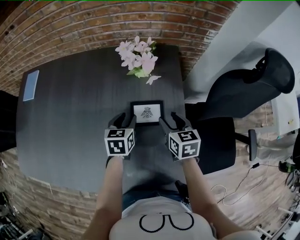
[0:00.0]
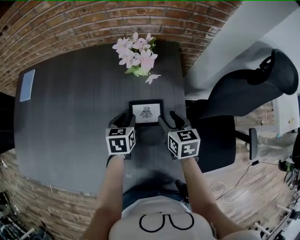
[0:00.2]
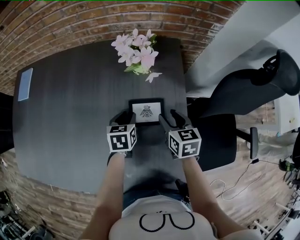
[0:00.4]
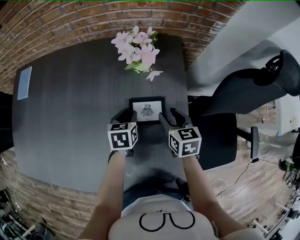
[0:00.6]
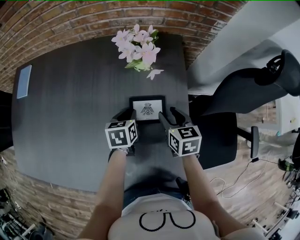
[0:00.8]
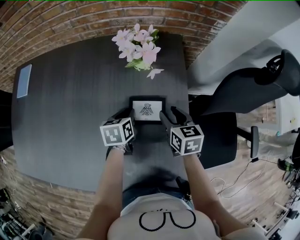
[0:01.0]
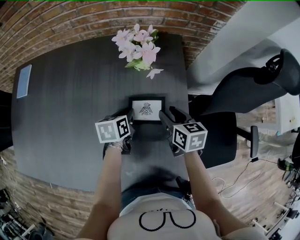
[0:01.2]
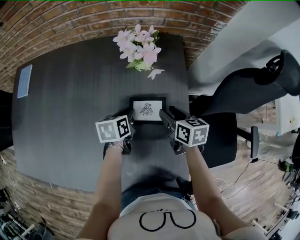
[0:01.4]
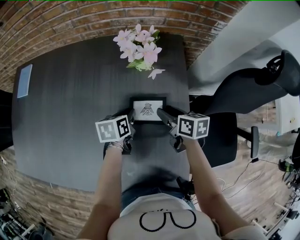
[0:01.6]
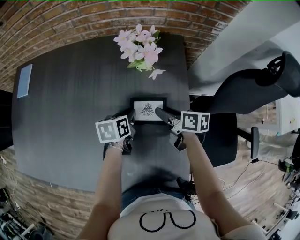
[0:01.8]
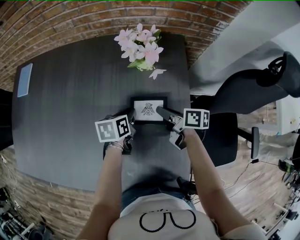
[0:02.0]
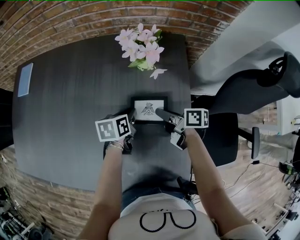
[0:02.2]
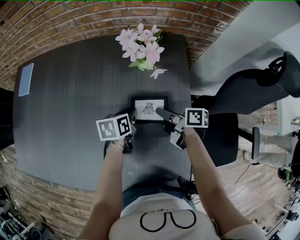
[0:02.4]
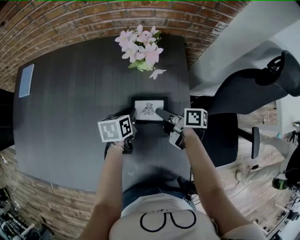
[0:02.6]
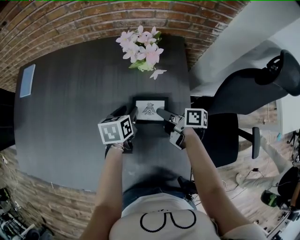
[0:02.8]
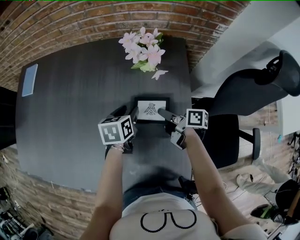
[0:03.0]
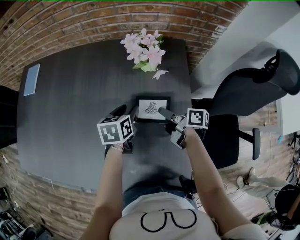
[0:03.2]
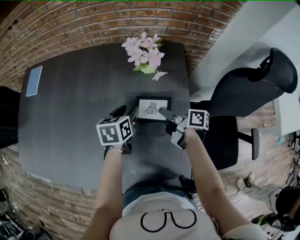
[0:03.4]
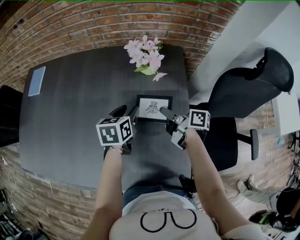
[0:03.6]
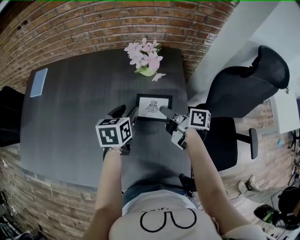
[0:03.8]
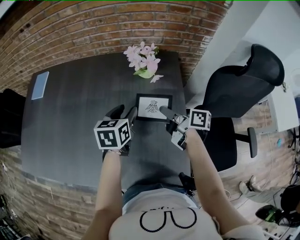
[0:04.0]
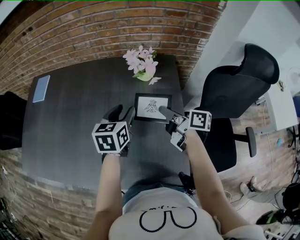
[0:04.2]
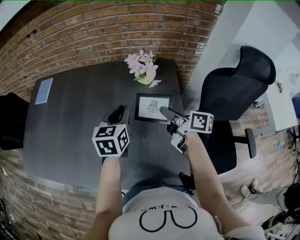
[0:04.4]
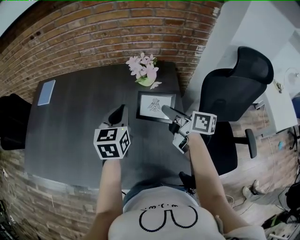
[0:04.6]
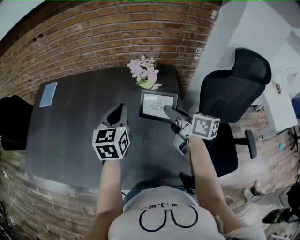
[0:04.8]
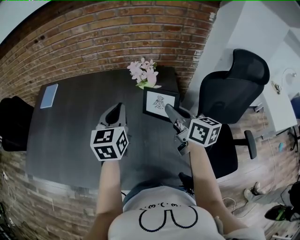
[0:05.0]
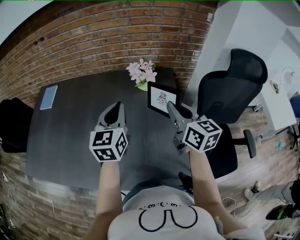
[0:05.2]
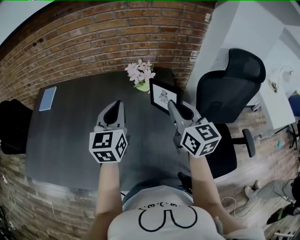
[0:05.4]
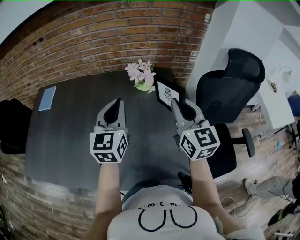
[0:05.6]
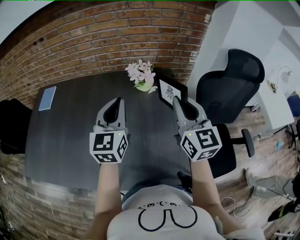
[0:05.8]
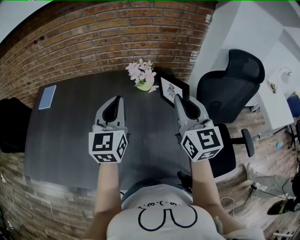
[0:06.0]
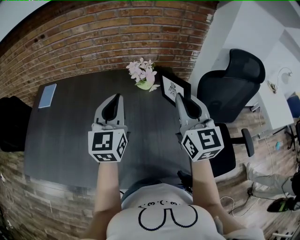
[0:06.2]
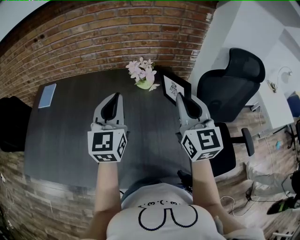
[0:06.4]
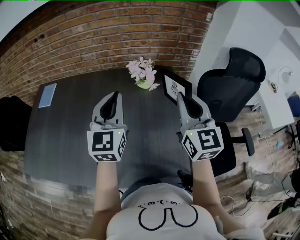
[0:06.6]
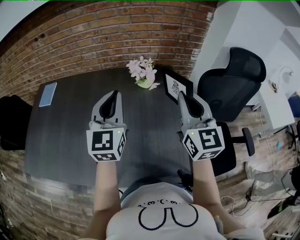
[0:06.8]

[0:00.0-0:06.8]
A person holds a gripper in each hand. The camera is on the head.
0:00.0 to 0:01.4: The right gripper ends up approximately 5 cm from where it was, while the left gripper heads downward, covering roughly 5 cm, rotates about 20 degrees, and closes up.
0:01.4 to 0:02.8: The left gripper opens its fingers, while the right gripper rotates roughly 40 degrees, and closes its fingers.
0:02.8 to 0:04.0: The grippers both shift upward by roughly 15 cm.
0:04.0 to 0:05.4: The two grippers go some 20 cm upward. The left gripper changes its angle by roughly 30 degrees, and closes its fingers; the right gripper rolls counterclockwise, seen from behind, by about 60 degrees.
0:05.4 to 0:06.8: The right gripper heads upward, covering about 5 cm, while the left gripper moves some 5 cm.

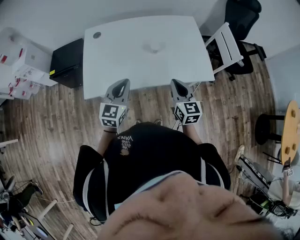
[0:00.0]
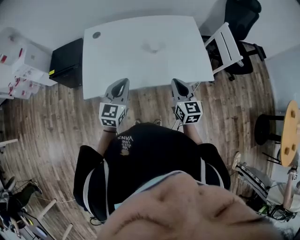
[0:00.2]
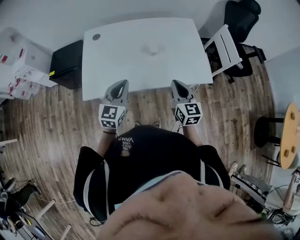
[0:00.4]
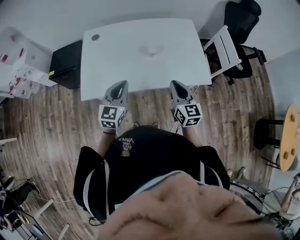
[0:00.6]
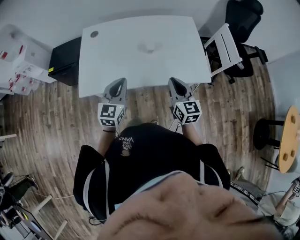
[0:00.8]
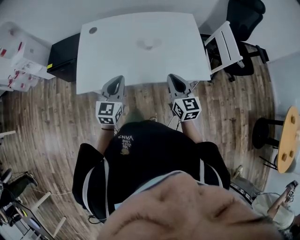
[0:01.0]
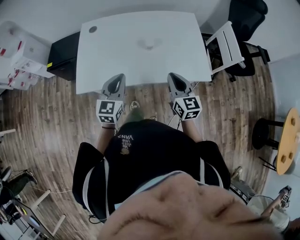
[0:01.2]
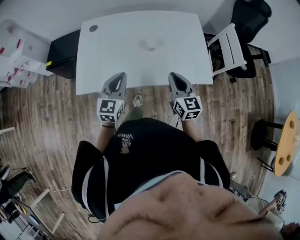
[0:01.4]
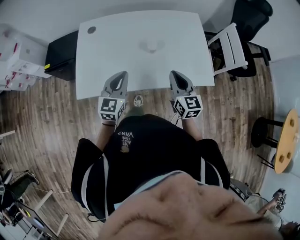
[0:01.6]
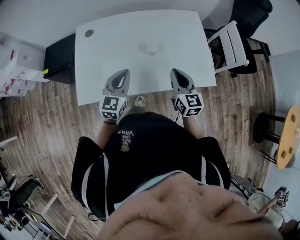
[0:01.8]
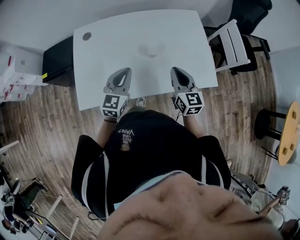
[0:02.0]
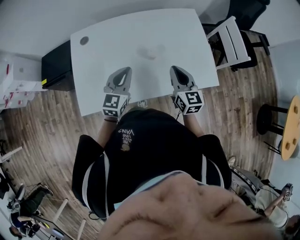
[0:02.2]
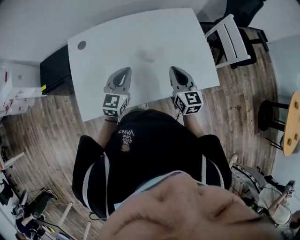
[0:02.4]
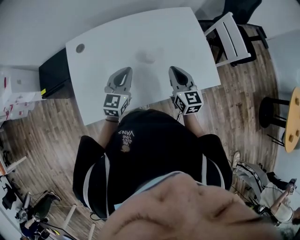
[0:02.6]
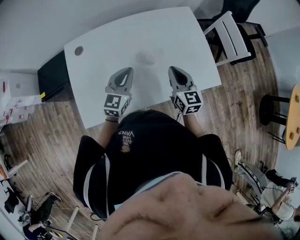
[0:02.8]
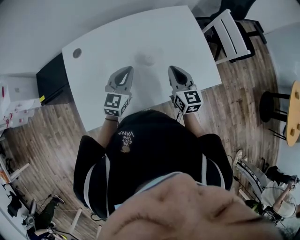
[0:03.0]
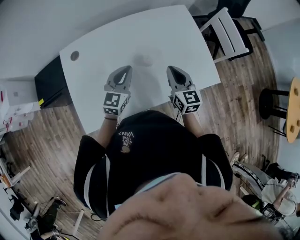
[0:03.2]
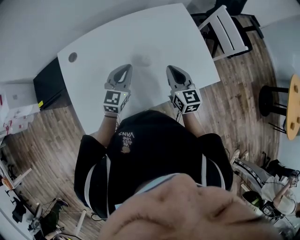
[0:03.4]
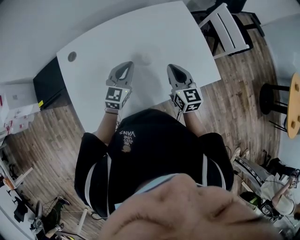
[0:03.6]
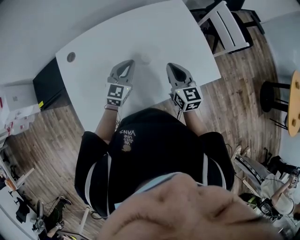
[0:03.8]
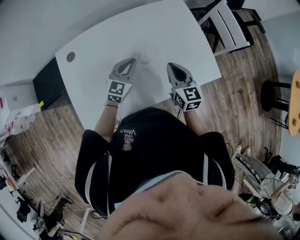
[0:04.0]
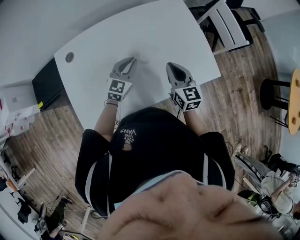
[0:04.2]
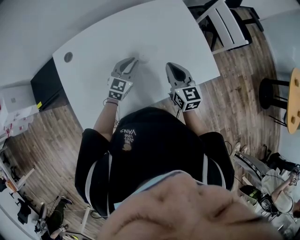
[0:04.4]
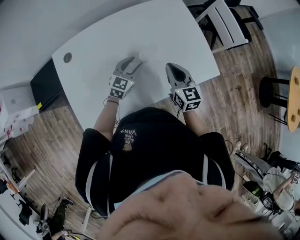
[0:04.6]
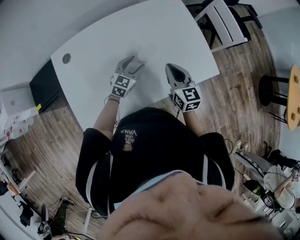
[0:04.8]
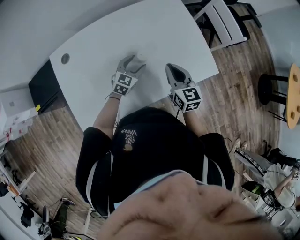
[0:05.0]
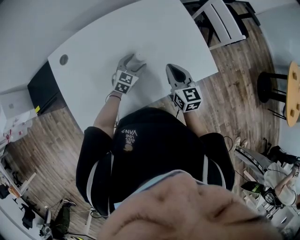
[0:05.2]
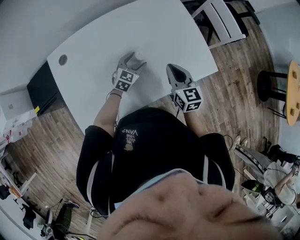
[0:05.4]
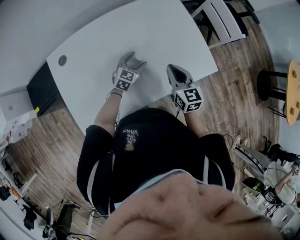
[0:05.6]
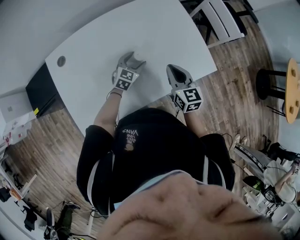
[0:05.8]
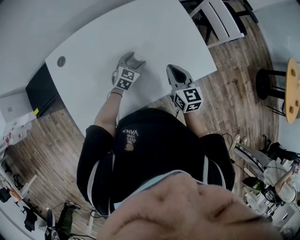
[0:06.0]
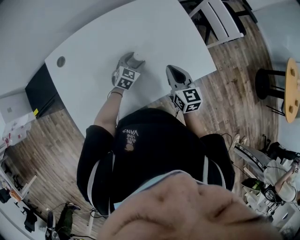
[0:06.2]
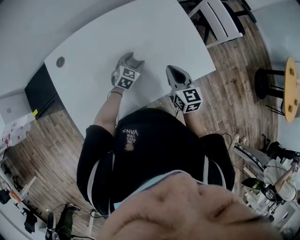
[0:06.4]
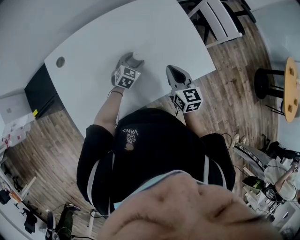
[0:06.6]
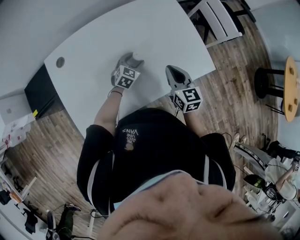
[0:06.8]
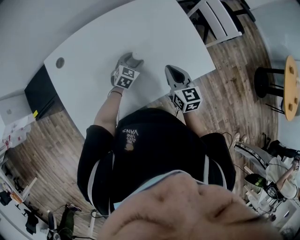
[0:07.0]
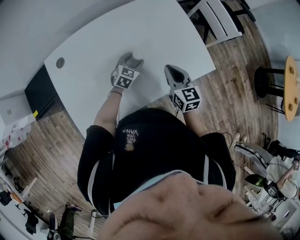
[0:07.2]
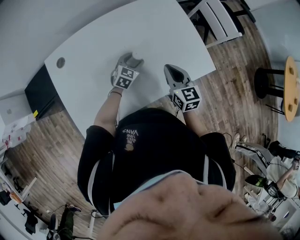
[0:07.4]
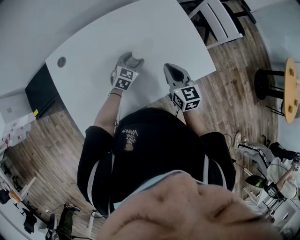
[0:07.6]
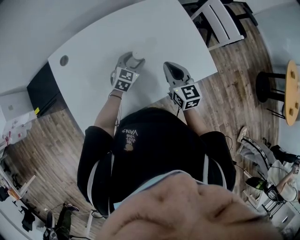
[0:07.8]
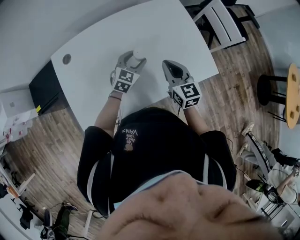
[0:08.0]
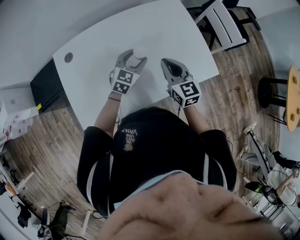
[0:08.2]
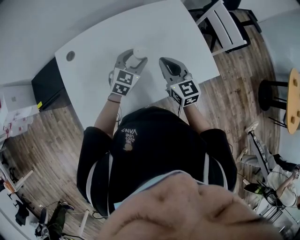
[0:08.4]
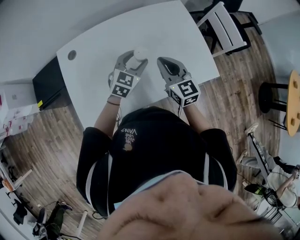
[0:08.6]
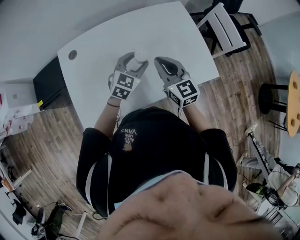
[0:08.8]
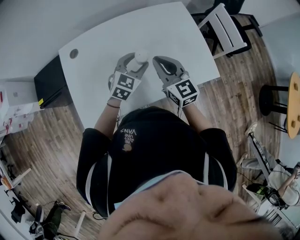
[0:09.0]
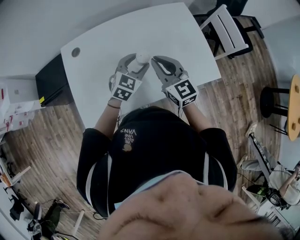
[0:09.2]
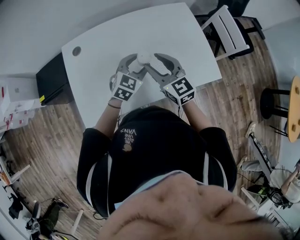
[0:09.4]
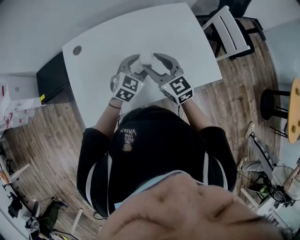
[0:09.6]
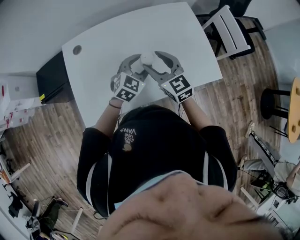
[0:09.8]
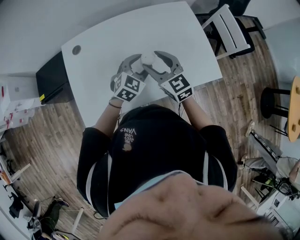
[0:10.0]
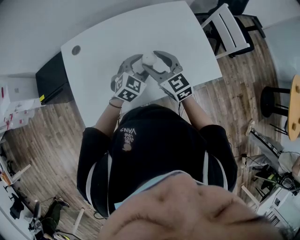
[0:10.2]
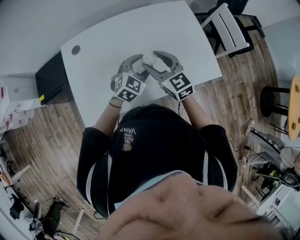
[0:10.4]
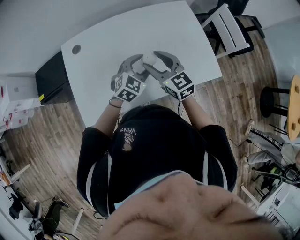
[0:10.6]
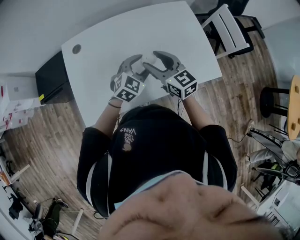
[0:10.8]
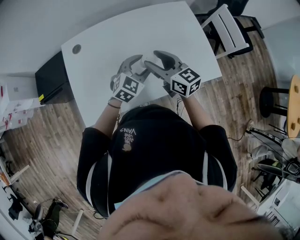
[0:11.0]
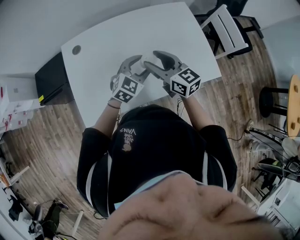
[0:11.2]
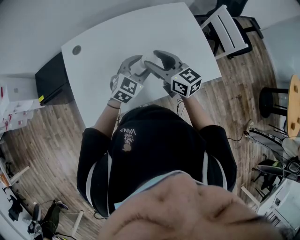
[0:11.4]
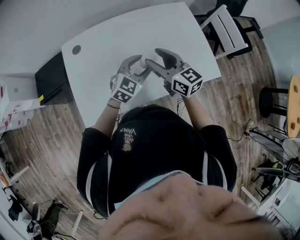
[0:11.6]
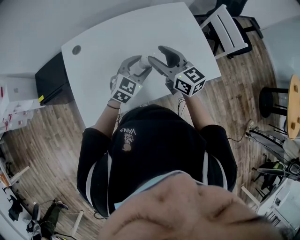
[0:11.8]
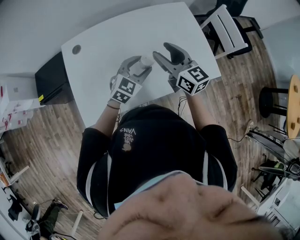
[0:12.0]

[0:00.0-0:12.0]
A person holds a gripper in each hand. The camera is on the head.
0:00.0 to 0:01.6: The grippers both shift forward by roughly 10 cm.
0:01.6 to 0:03.0: The grippers both shift forward by about 15 cm.
0:03.0 to 0:04.4: The left gripper heads downward and forward, covering approximately 10 cm.
0:04.4 to 0:06.0: The left gripper heads downward, covering roughly 10 cm, and opens up.
0:06.0 to 0:07.6: The grippers stay close to where they were, moving slightly.
0:07.6 to 0:09.0: The right gripper goes about 10 cm upward and to the left, and rotates about 20 degrees, while the left gripper heads upward and backward, covering approximately 15 cm.
0:09.0 to 0:10.4: The right gripper opens.
0:10.4 to 0:12.0: The right gripper is displaced upward by about 5 cm, and changes its angle by approximately 20 degrees.

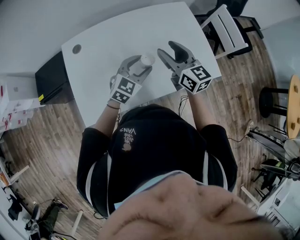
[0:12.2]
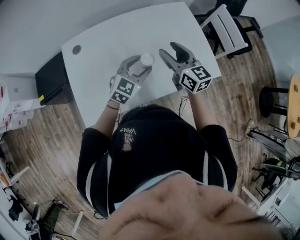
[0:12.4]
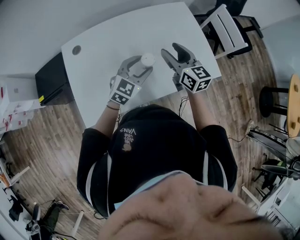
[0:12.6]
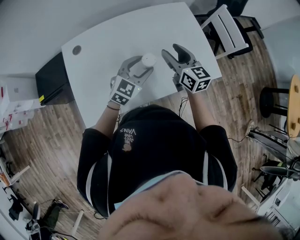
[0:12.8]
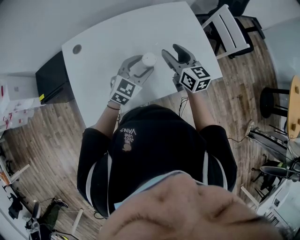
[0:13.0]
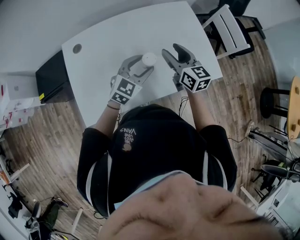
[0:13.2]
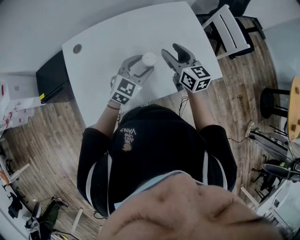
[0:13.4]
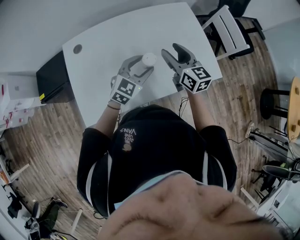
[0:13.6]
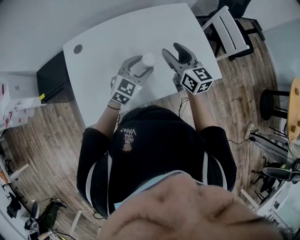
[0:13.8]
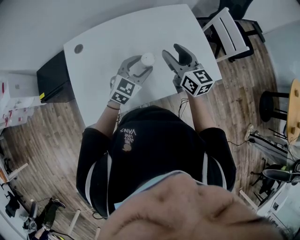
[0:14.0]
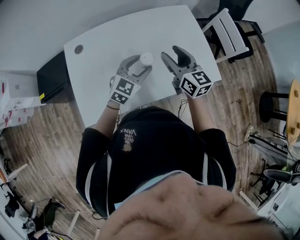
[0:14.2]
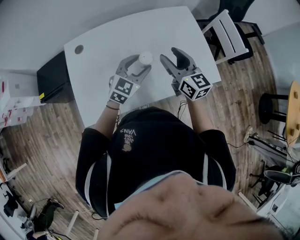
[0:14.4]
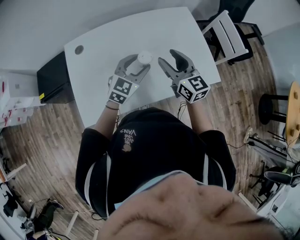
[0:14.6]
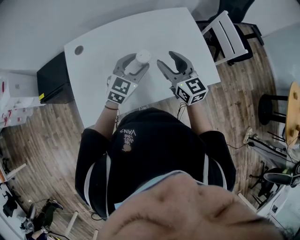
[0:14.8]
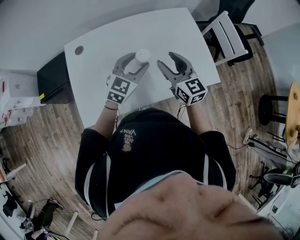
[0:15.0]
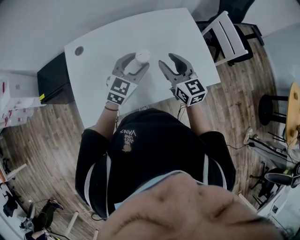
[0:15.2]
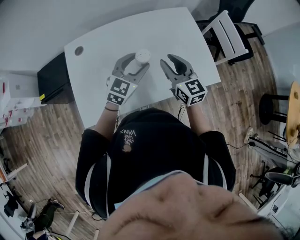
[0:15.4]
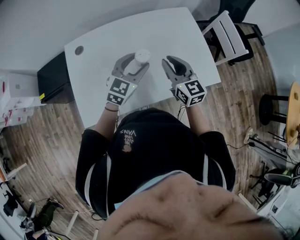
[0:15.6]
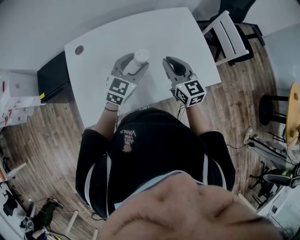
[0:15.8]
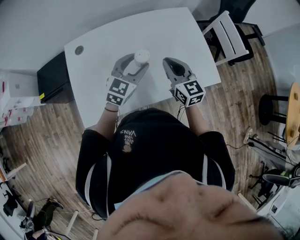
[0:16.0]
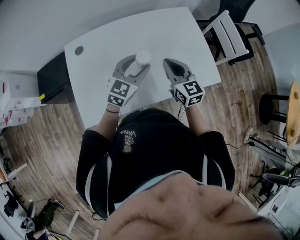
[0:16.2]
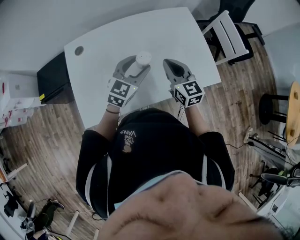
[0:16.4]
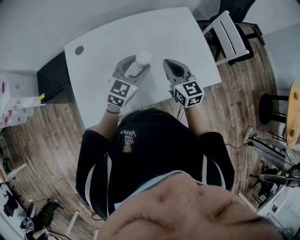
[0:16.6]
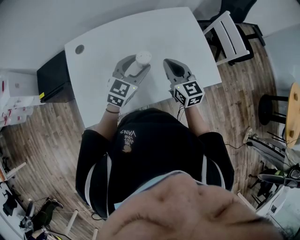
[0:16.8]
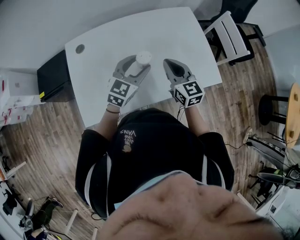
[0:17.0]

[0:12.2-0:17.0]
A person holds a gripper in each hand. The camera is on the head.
0:12.2 to 0:13.8: The grippers move only a little.
0:13.8 to 0:15.4: The right gripper closes up.
0:15.4 to 0:17.0: The right gripper closes its fingers.
